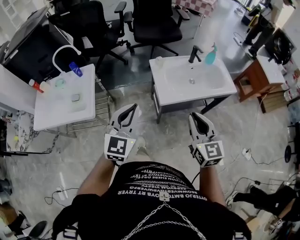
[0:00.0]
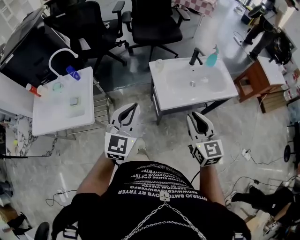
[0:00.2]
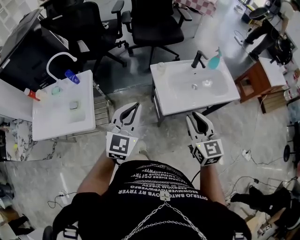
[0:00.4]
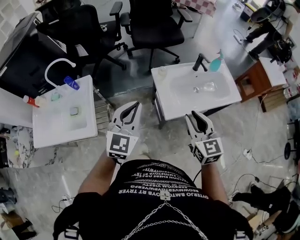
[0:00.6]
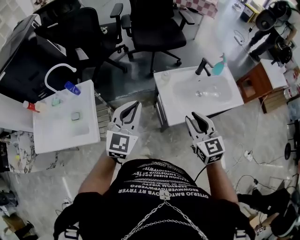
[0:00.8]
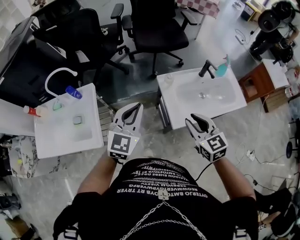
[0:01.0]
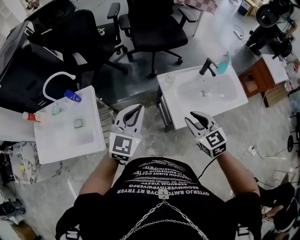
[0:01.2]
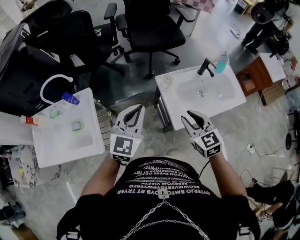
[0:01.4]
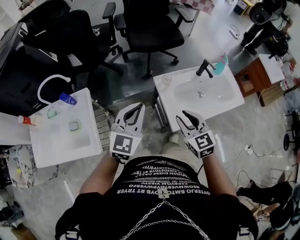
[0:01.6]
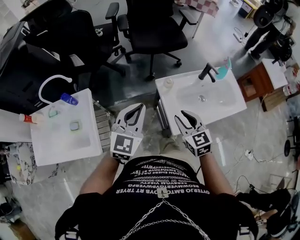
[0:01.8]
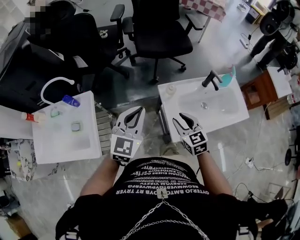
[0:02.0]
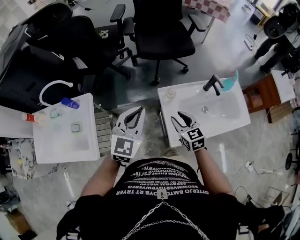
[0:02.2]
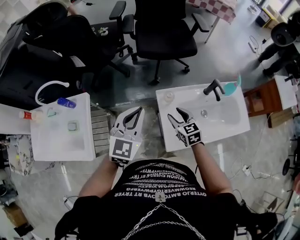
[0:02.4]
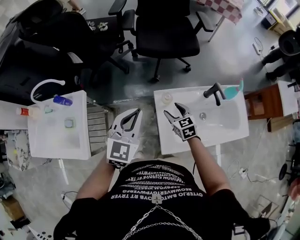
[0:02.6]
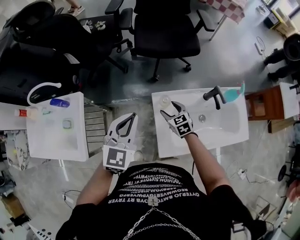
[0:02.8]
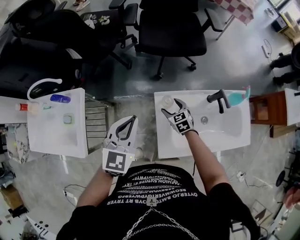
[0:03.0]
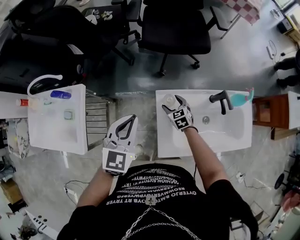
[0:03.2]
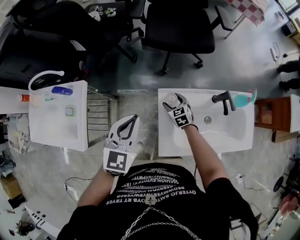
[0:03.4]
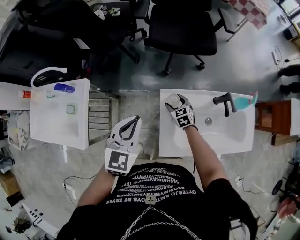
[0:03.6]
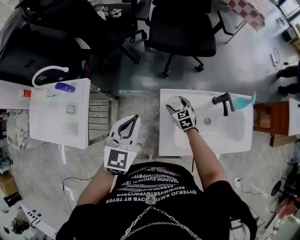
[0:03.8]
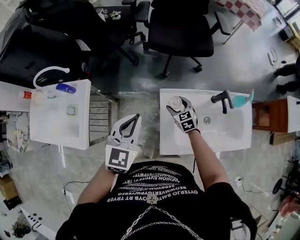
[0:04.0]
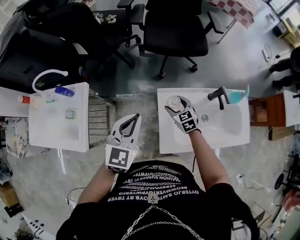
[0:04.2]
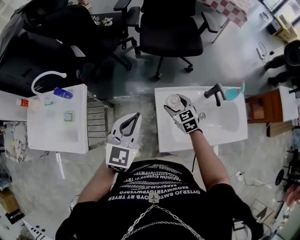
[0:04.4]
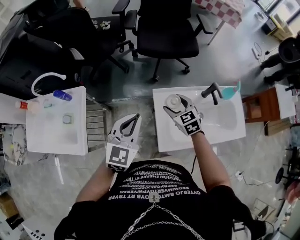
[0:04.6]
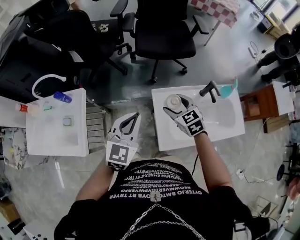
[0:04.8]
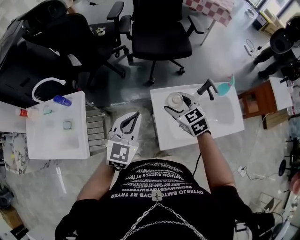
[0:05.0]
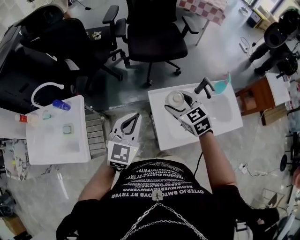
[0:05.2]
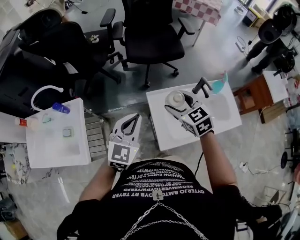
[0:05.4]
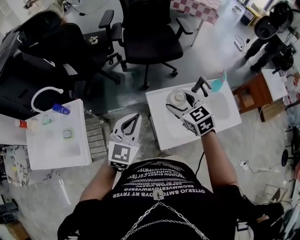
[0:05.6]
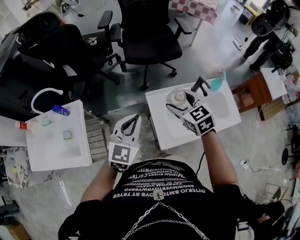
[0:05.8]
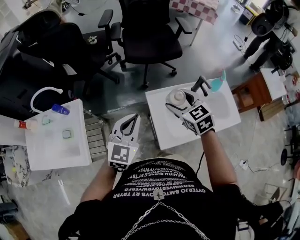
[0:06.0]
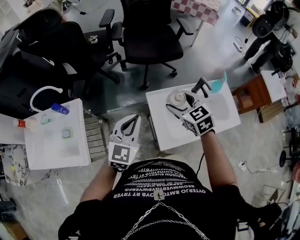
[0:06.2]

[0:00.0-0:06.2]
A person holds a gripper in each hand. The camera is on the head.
0:00.0 to 0:01.6: The right gripper shifts about 30 cm forward and to the left. Meanwhile the left gripper is displaced forward by approximately 25 cm.
0:01.6 to 0:03.2: The left gripper goes roughly 15 cm forward, to the right and downward, and changes its angle by about 20 degrees. The right gripper goes roughly 40 cm forward and downward, turns by roughly 20 degrees, and opens.
0:03.2 to 0:04.6: The left gripper shifts some 5 cm backward. Meanwhile the right gripper goes approximately 15 cm upward.
0:04.6 to 0:06.2: The right gripper goes roughly 15 cm upward.

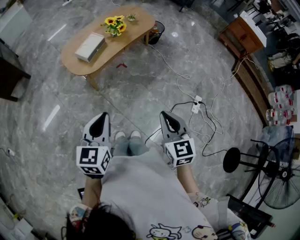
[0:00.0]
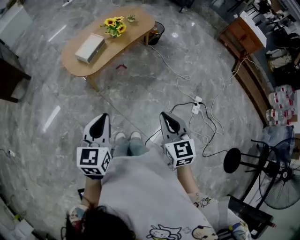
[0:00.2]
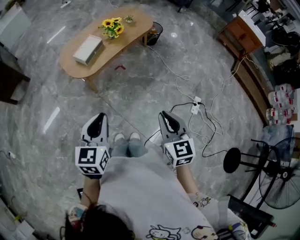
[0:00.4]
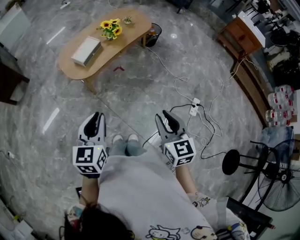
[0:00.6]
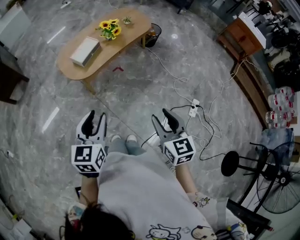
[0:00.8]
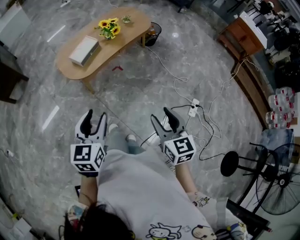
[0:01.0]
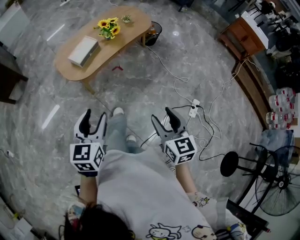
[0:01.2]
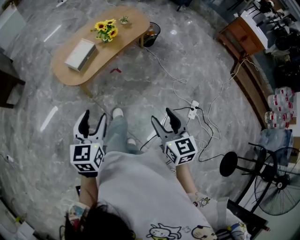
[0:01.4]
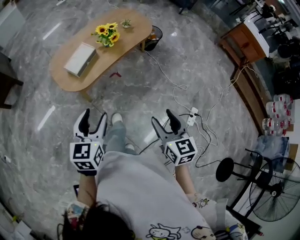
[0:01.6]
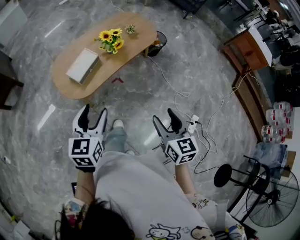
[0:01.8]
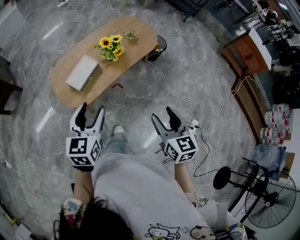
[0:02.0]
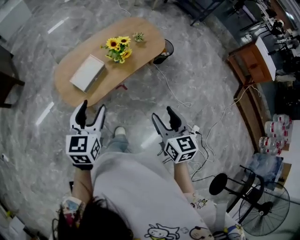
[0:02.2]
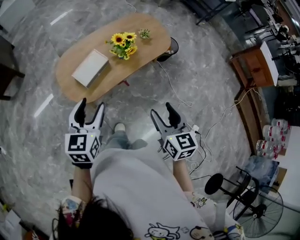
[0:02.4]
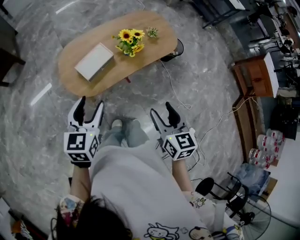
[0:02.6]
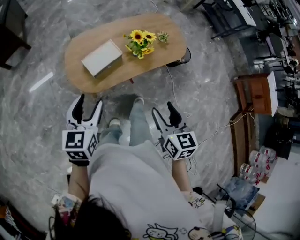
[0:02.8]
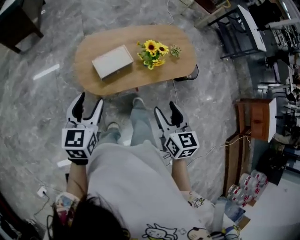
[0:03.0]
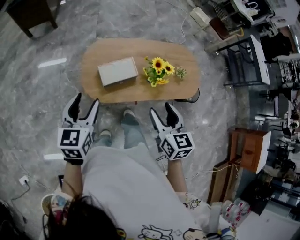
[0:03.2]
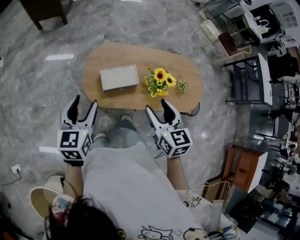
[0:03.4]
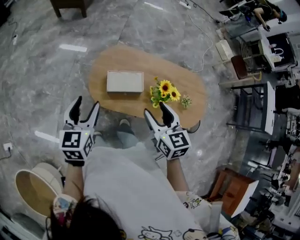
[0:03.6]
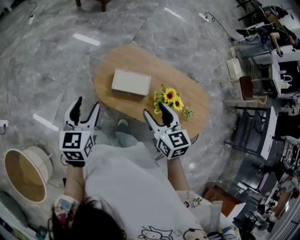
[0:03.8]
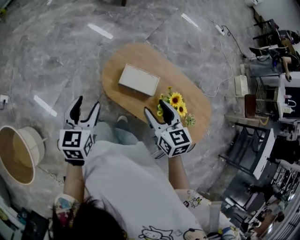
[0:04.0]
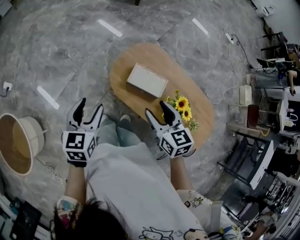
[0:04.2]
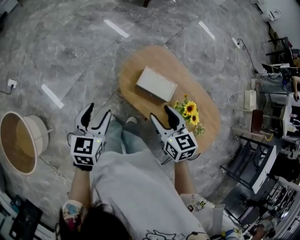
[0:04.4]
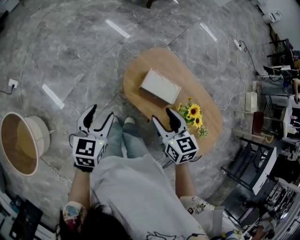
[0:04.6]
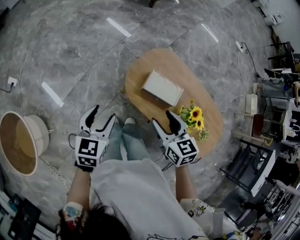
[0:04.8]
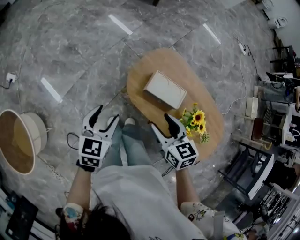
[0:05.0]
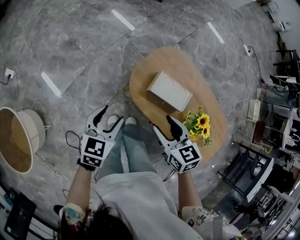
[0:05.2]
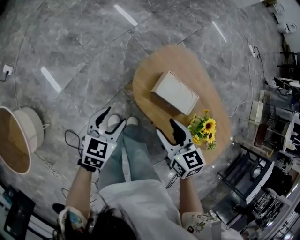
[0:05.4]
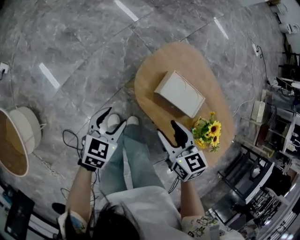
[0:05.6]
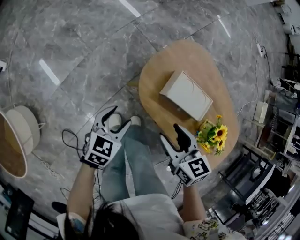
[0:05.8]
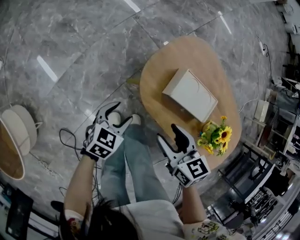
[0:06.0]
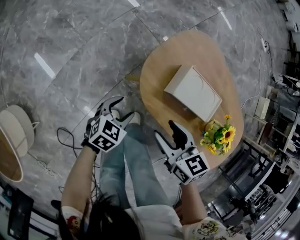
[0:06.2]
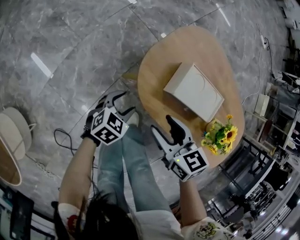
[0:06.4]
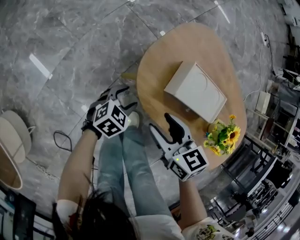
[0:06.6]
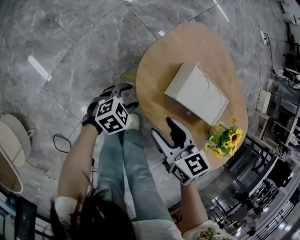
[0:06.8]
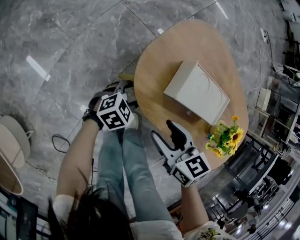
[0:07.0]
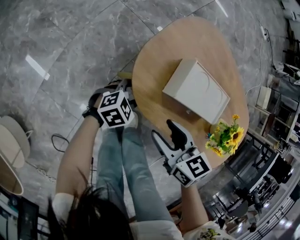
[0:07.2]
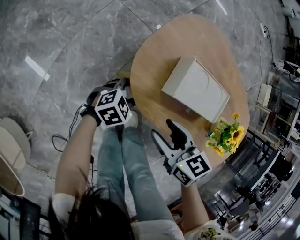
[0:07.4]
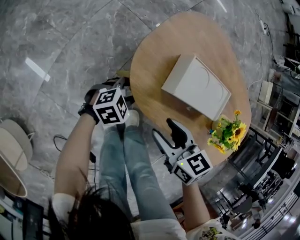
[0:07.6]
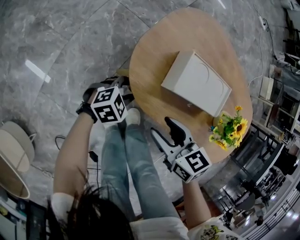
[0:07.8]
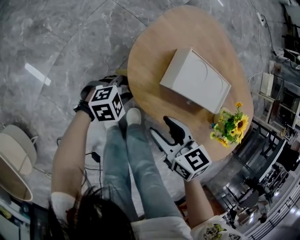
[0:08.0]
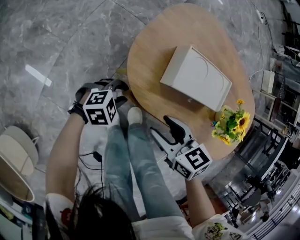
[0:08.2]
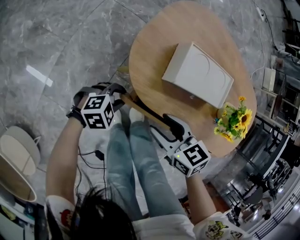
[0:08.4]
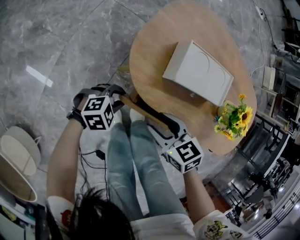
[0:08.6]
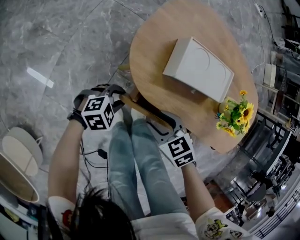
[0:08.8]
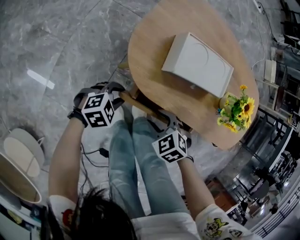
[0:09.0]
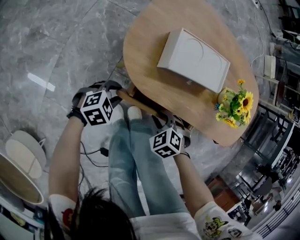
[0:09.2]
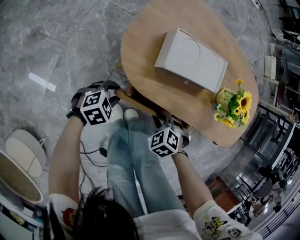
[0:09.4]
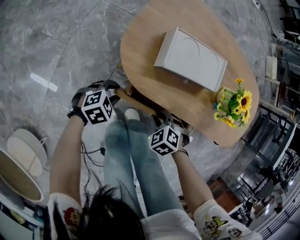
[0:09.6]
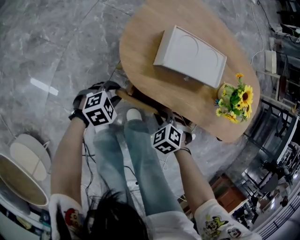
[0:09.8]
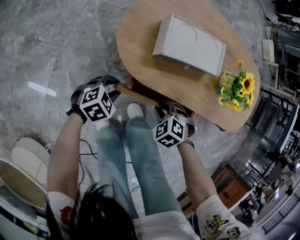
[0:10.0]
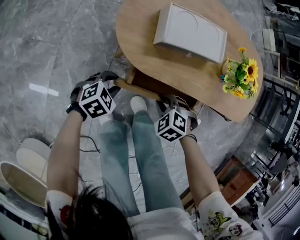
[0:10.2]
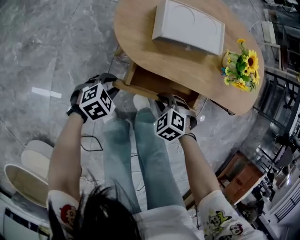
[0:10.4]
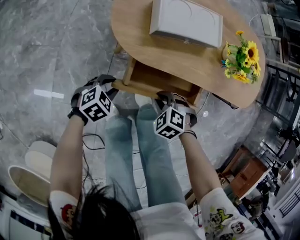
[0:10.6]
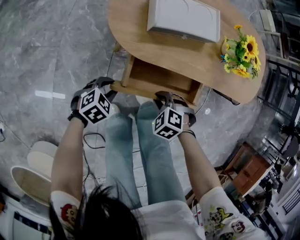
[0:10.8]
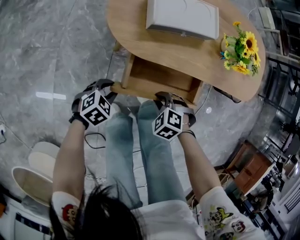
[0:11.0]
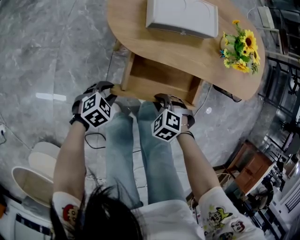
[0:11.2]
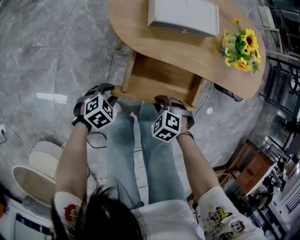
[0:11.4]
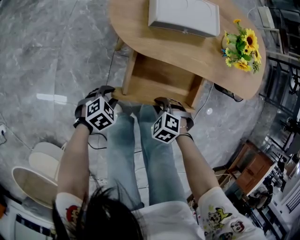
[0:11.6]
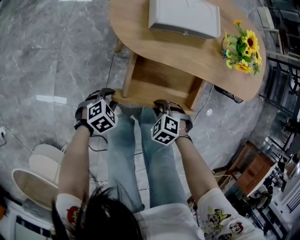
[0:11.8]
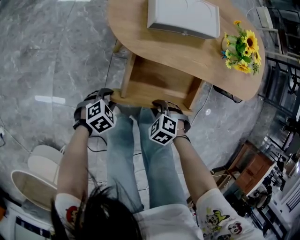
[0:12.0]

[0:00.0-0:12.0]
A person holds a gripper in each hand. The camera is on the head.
0:00.0 to 0:01.6: The two grippers go approximately 15 cm forward. The left gripper opens its fingers; the right gripper opens.
0:01.6 to 0:03.0: The right gripper moves forward, about 30 cm, and turns by roughly 20 degrees; the left gripper is displaced forward and to the left by approximately 25 cm, and rotates approximately 30 degrees.
0:03.0 to 0:04.4: The left gripper changes place by about 10 cm, and rotates about 50 degrees, while the right gripper shifts by approximately 20 cm, and changes its angle by some 70 degrees.
0:04.4 to 0:06.0: The right gripper travels downward by about 20 cm. The left gripper moves downward, about 30 cm, and rotates about 30 degrees.
0:06.0 to 0:07.6: The left gripper heads downward, to the right and forward, covering some 20 cm, and rotates roughly 40 degrees. The right gripper is displaced downward by some 10 cm.
0:07.6 to 0:09.0: The right gripper travels downward by about 10 cm, and rotates some 40 degrees. The left gripper moves some 10 cm.
0:09.0 to 0:10.4: The right gripper shifts by some 5 cm, and closes.
0:10.4 to 0:12.0: The right gripper ends up some 10 cm from where it was. The left gripper changes place by roughly 10 cm.

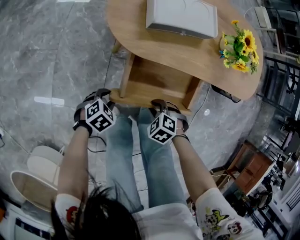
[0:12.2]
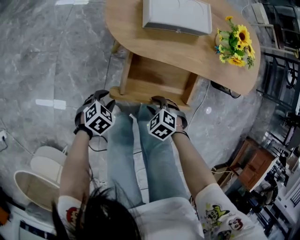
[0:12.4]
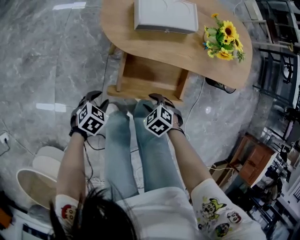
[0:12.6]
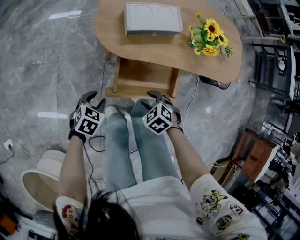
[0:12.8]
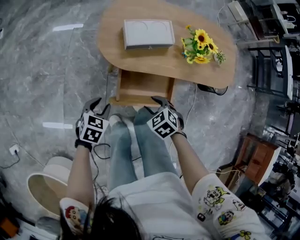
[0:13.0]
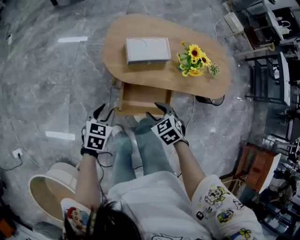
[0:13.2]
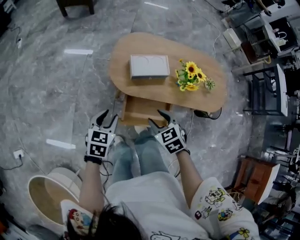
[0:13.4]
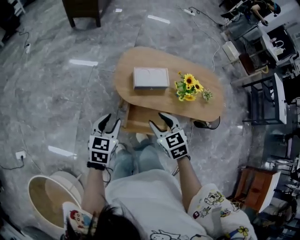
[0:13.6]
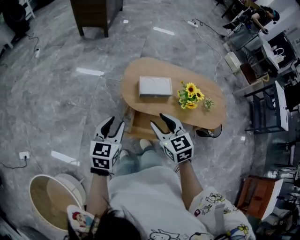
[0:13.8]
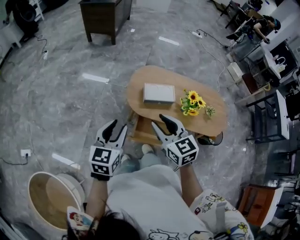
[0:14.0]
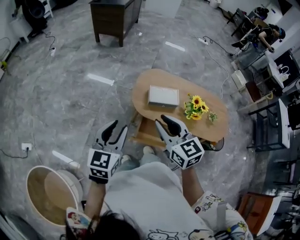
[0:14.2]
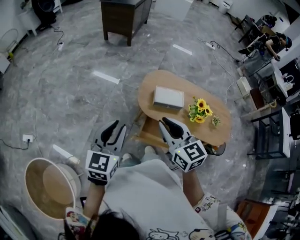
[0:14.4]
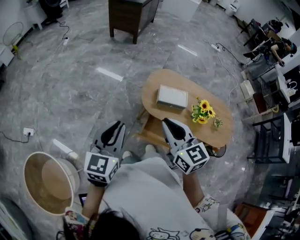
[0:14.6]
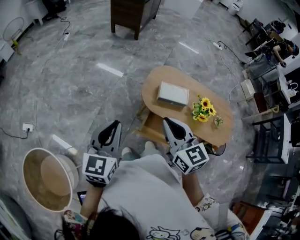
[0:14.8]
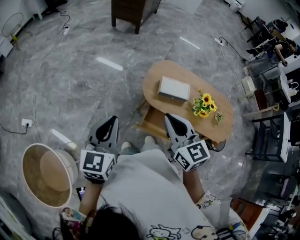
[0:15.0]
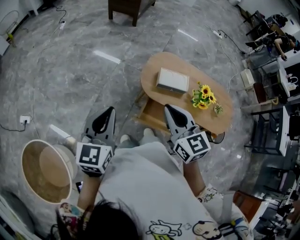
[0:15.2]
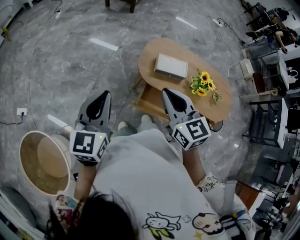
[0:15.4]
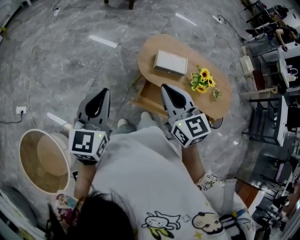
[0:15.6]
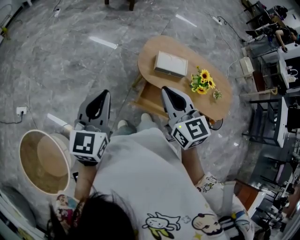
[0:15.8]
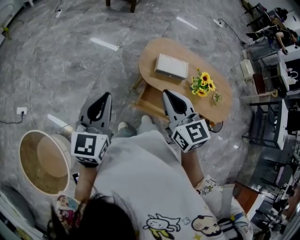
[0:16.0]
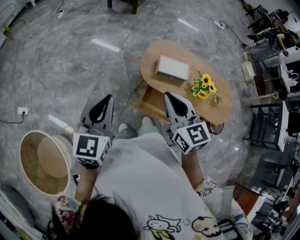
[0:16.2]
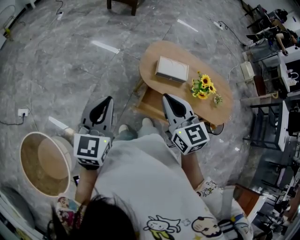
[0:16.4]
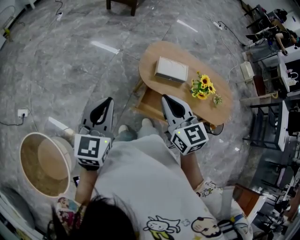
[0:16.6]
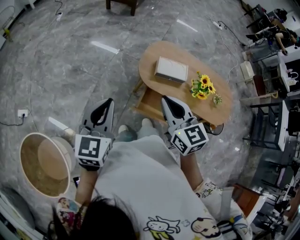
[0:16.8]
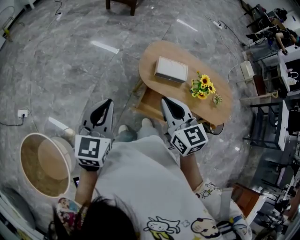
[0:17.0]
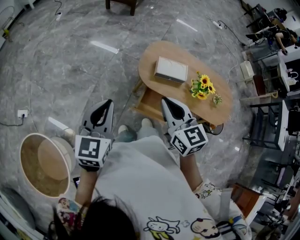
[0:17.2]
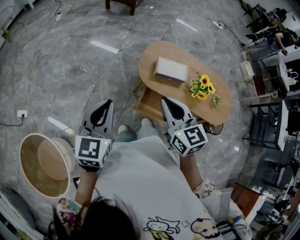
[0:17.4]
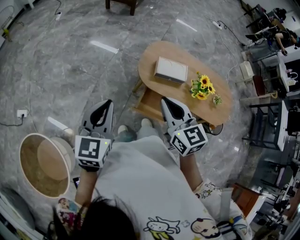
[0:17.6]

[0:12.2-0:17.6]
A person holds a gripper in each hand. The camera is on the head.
0:12.2 to 0:13.6: The two grippers go roughly 40 cm upward. The left gripper tilts its fingers some 30 degrees upward. The right gripper angles its fingers upward, by roughly 40 degrees, and opens up.
0:13.6 to 0:15.0: The right gripper travels upward and to the left by some 20 cm, rotates roughly 30 degrees, and closes; the left gripper travels upward, to the left and backward by some 25 cm, rotates some 30 degrees, and closes its fingers.
0:15.0 to 0:17.6: The grippers make only small movements.
